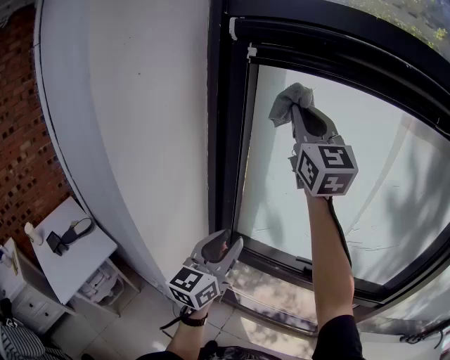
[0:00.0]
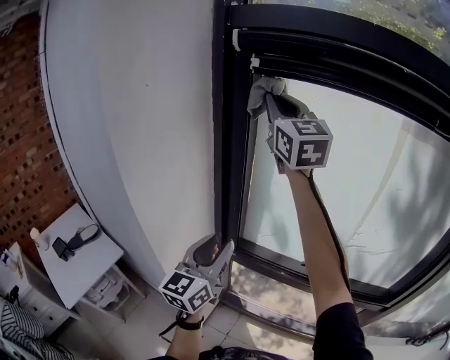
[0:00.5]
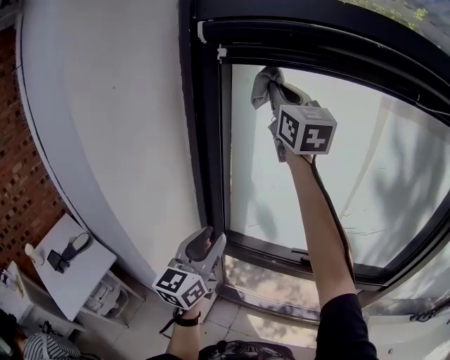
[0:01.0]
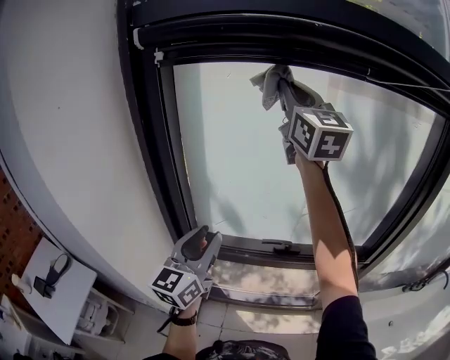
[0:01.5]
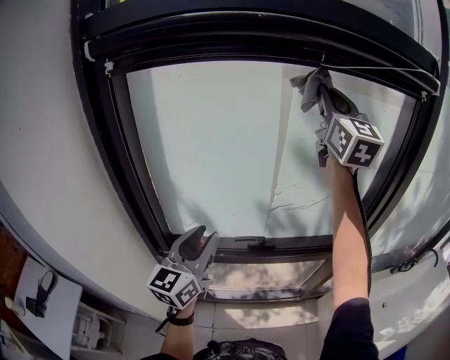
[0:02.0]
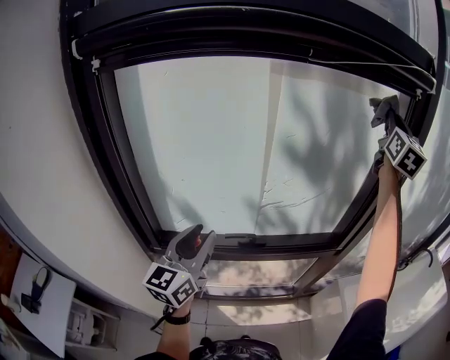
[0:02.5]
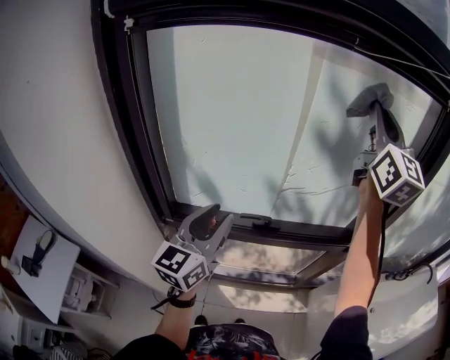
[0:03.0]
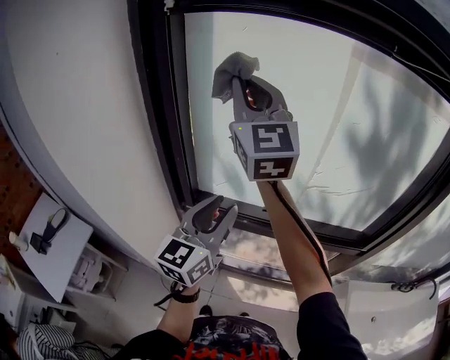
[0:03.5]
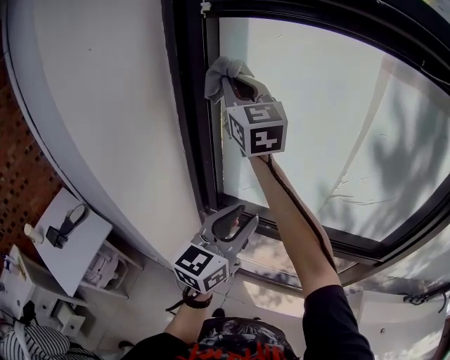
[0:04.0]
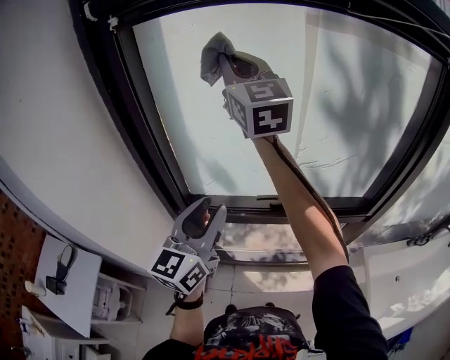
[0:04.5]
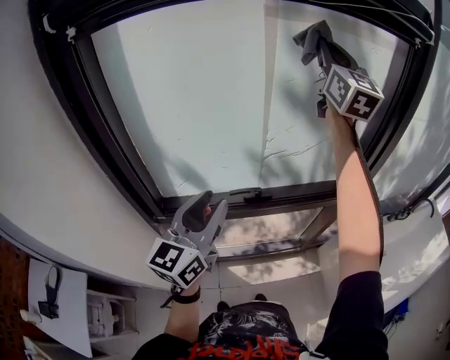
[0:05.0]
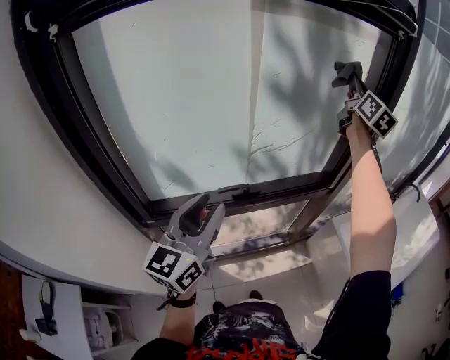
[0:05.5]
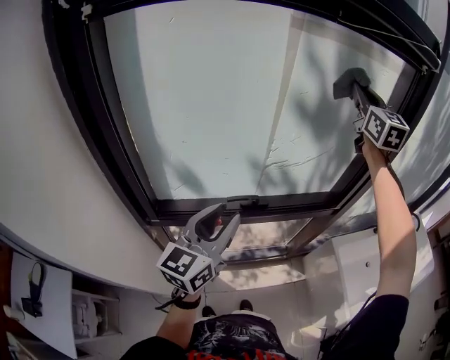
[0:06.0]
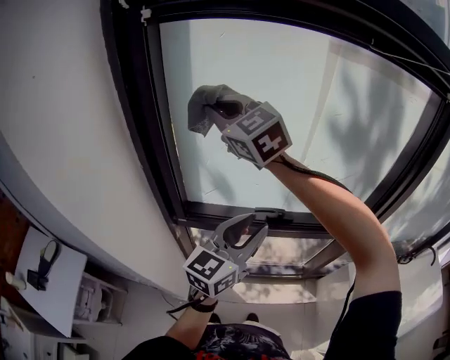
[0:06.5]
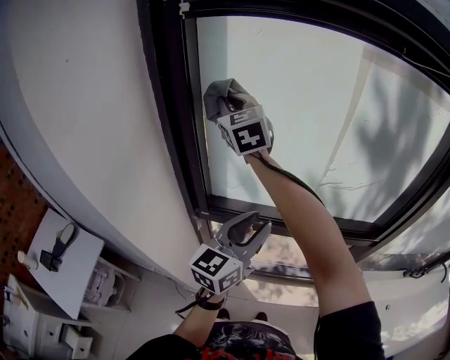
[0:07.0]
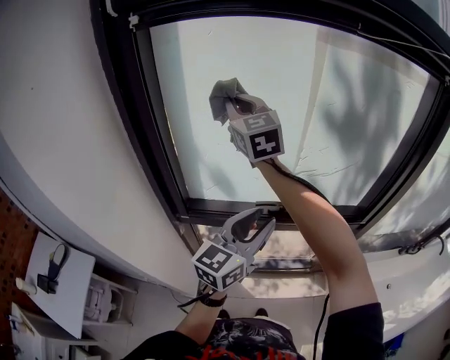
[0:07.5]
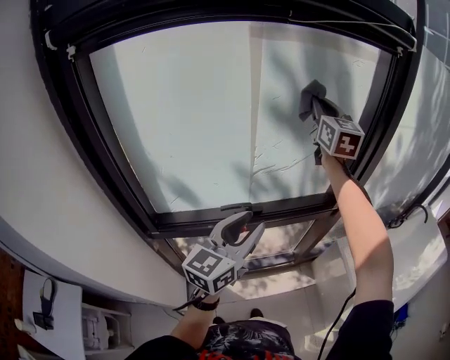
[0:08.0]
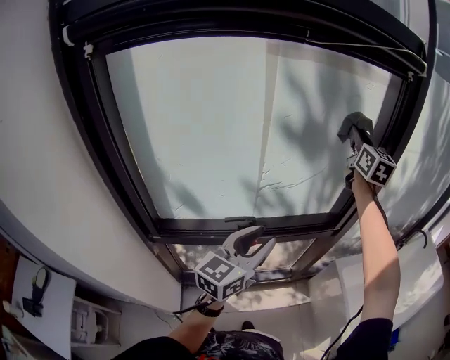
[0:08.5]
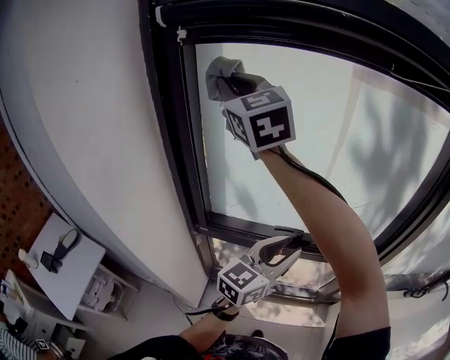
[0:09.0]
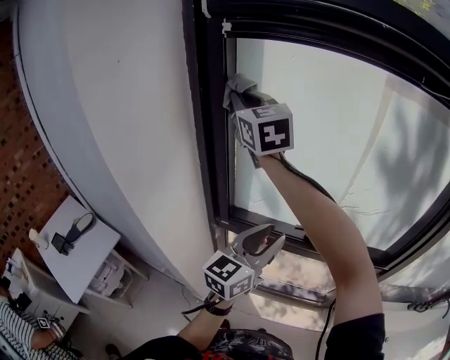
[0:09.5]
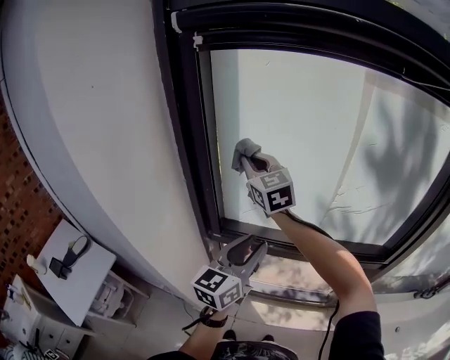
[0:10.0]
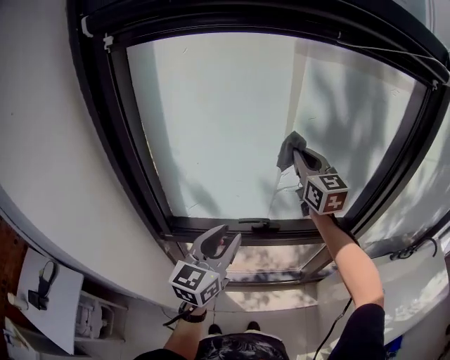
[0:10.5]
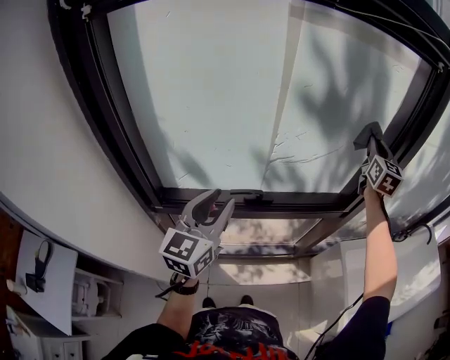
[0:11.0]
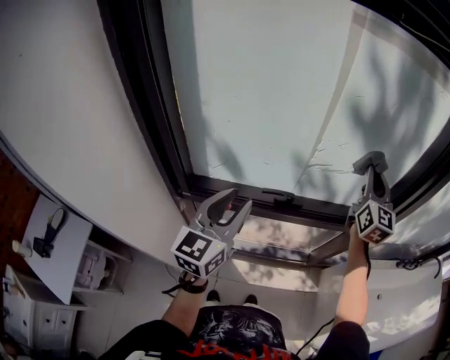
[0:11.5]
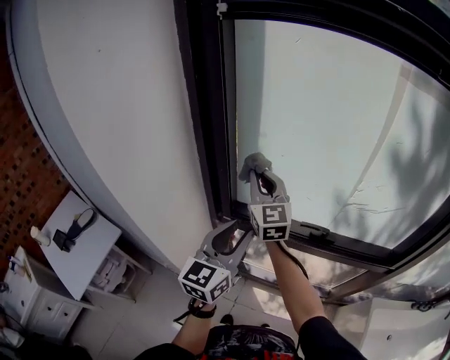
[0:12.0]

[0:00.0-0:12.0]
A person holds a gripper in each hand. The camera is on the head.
0:00.0 to 0:02.0: The right gripper shifts by roughly 35 cm, and changes its angle by roughly 30 degrees, while the left gripper ends up some 15 cm from where it was.
0:02.0 to 0:04.0: The right gripper moves about 40 cm, and rotates some 30 degrees; the left gripper moves some 5 cm.
0:04.0 to 0:06.0: The right gripper goes up and down, some 10 cm each way, reversing 2 times, and rotates about 50 degrees; the left gripper shifts by about 10 cm, and turns by some 20 degrees.
0:06.0 to 0:08.0: The right gripper shifts roughly 5 cm downward, while the left gripper ends up about 10 cm from where it was.
0:08.0 to 0:10.0: The right gripper changes place by about 50 cm, and changes its angle by about 50 degrees; the left gripper changes place by approximately 15 cm, and rotates about 30 degrees.
0:10.0 to 0:12.0: The left gripper moves some 5 cm; the right gripper heads downward, covering some 10 cm.

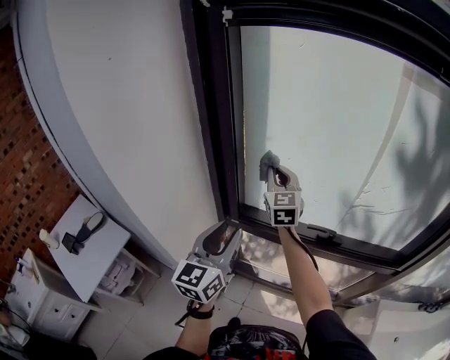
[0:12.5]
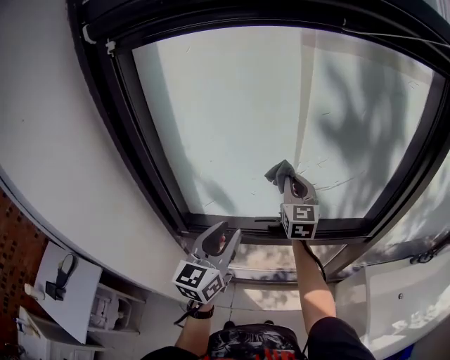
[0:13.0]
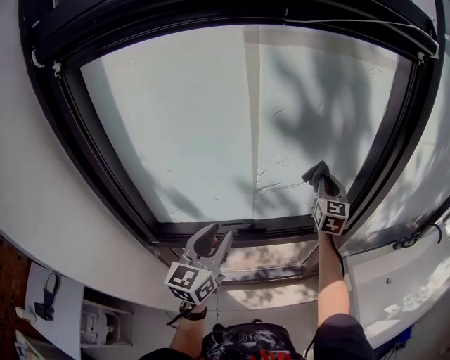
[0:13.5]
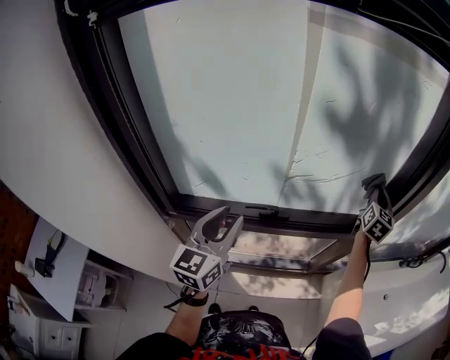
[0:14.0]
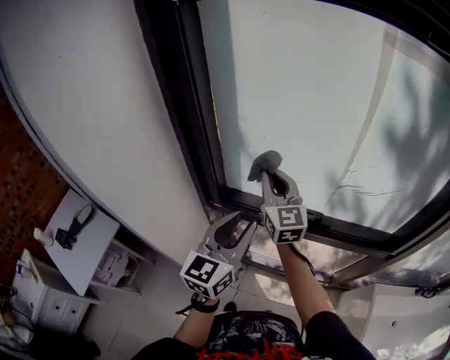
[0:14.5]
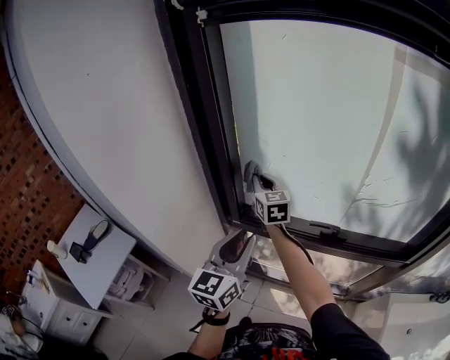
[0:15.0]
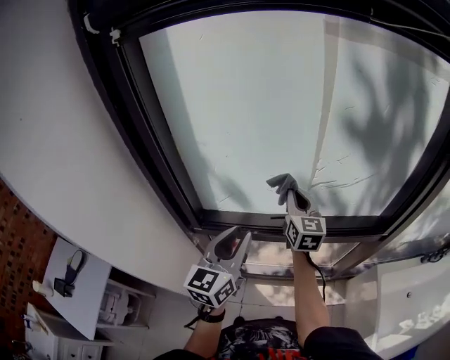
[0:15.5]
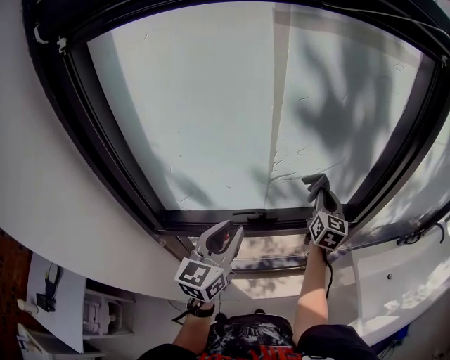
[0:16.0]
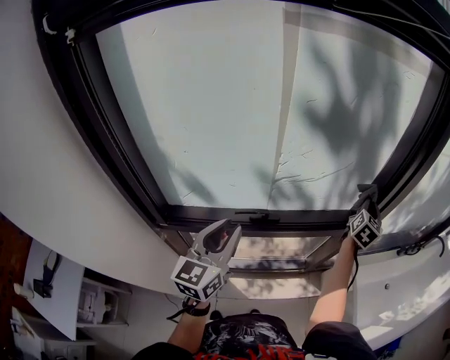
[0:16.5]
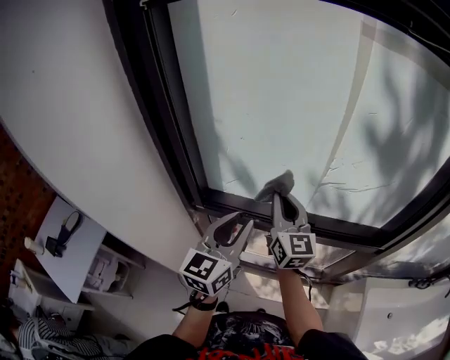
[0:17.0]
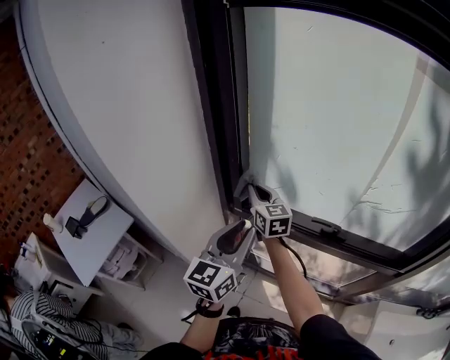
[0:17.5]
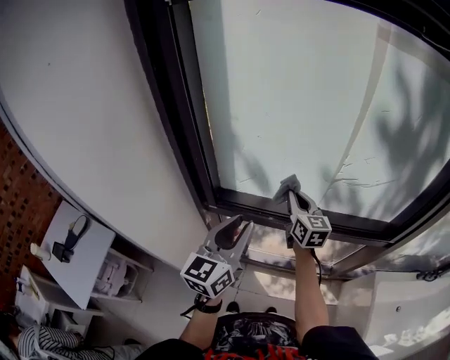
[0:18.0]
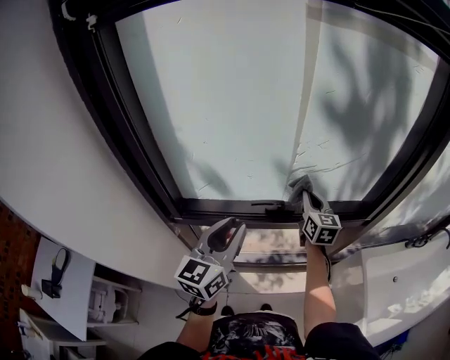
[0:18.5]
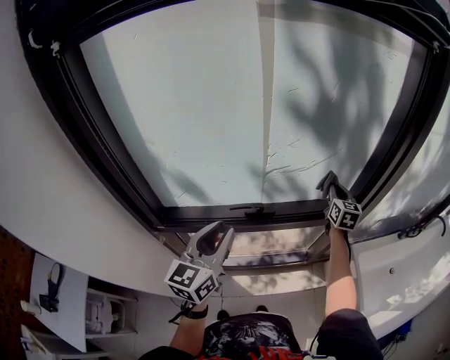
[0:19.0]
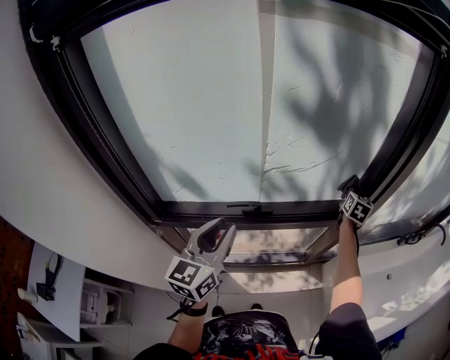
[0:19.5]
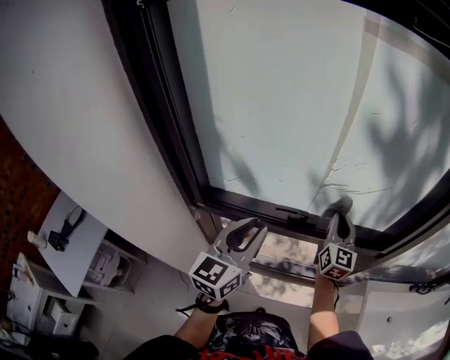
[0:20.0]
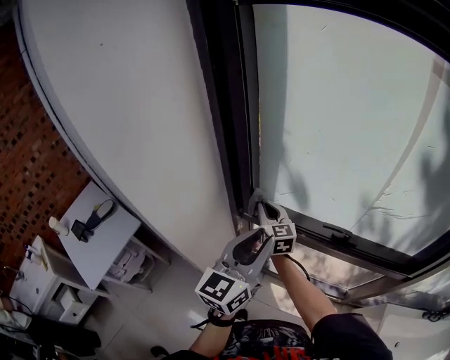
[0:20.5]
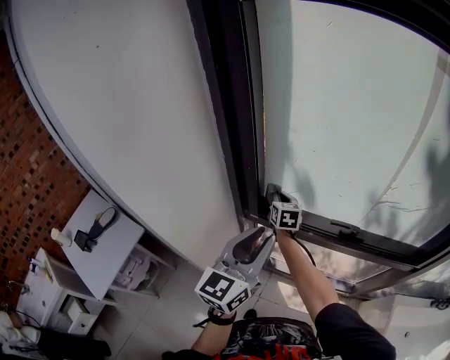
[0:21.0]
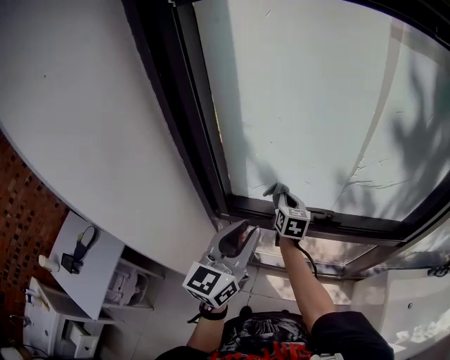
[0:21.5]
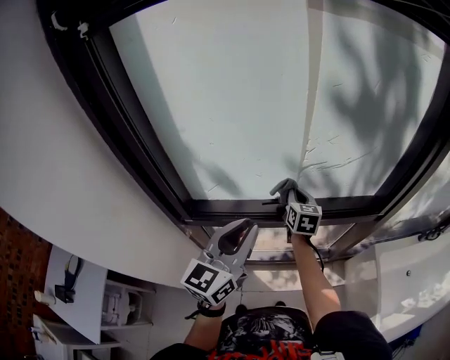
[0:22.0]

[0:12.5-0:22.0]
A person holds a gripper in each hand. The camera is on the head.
0:14.5 to 0:16.5: The left gripper moves about 15 cm. Meanwhile the right gripper shifts by approximately 60 cm, and changes its angle by roughly 70 degrees.
0:16.5 to 0:18.0: The left gripper shifts by some 15 cm; the right gripper changes place by some 50 cm, and changes its angle by roughly 60 degrees.
0:18.0 to 0:20.0: The right gripper rotates some 30 degrees.
0:20.0 to 0:22.0: The right gripper swivels approximately 30 degrees.

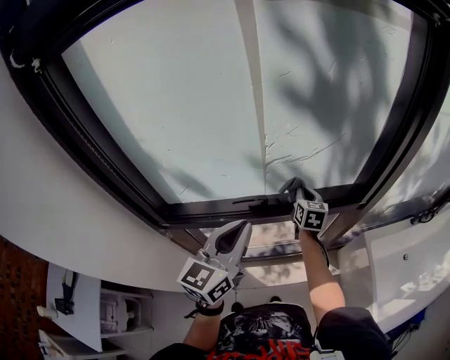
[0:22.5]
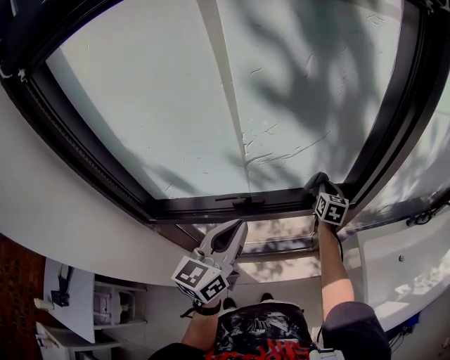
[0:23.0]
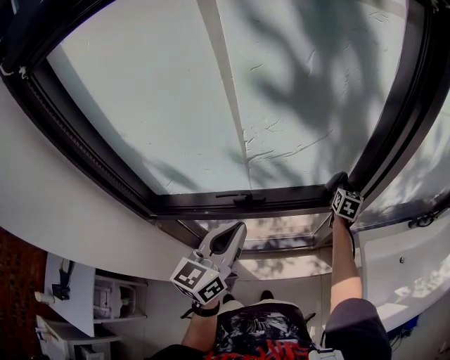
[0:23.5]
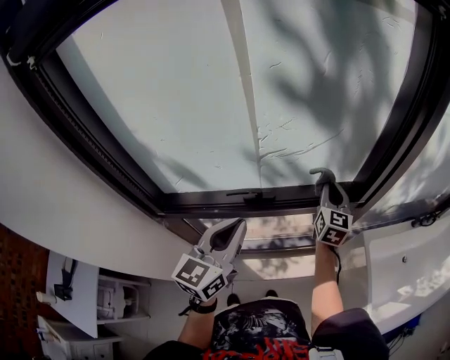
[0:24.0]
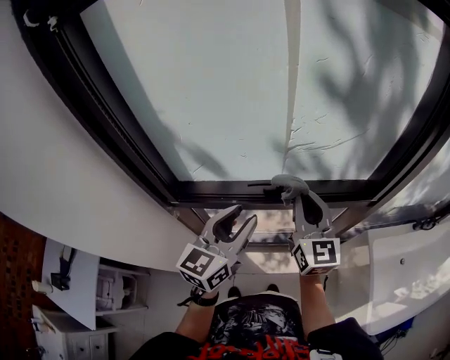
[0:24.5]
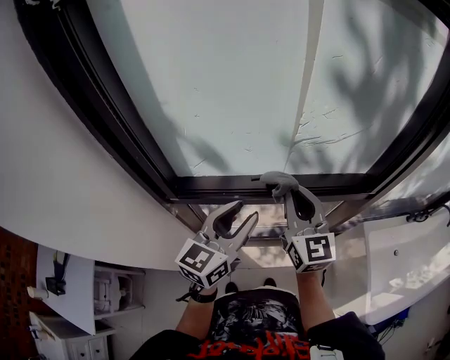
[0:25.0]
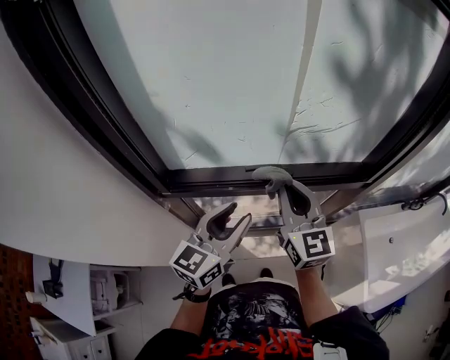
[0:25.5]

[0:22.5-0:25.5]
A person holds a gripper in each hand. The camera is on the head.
0:22.5 to 0:24.0: The right gripper heads to the right and upward, covering about 15 cm.
0:24.0 to 0:25.5: The right gripper moves to the left and backward, roughly 30 cm, and swivels some 30 degrees. The left gripper goes about 10 cm to the left, and opens.

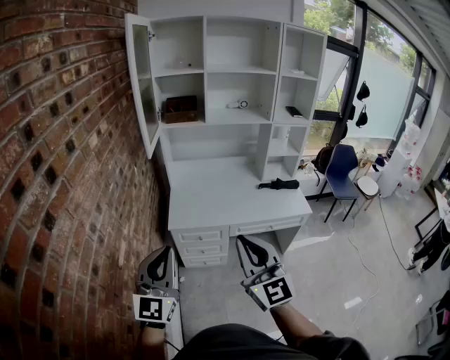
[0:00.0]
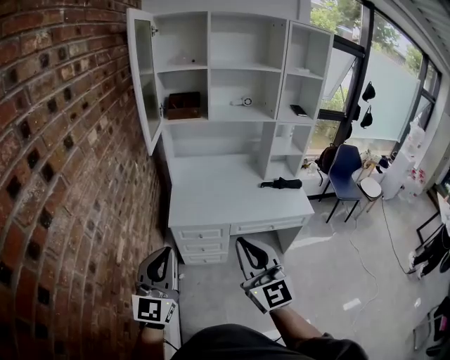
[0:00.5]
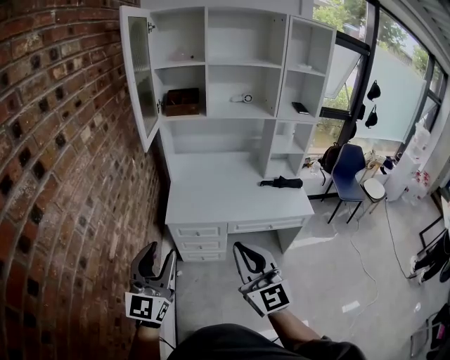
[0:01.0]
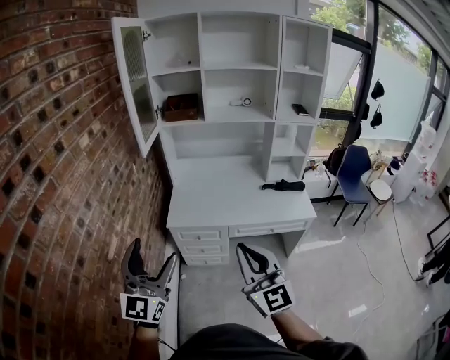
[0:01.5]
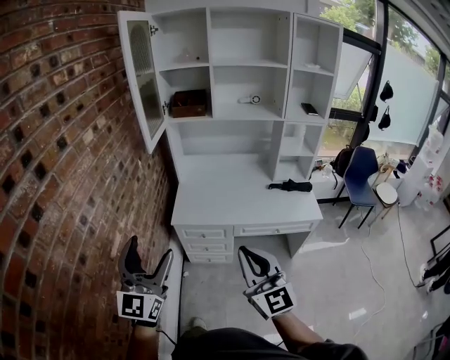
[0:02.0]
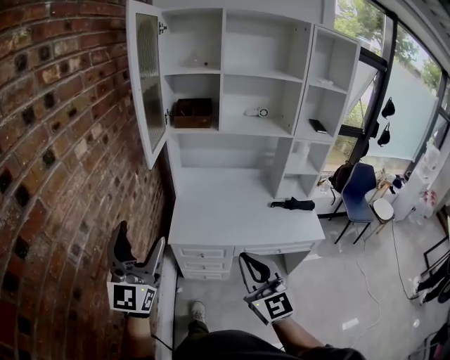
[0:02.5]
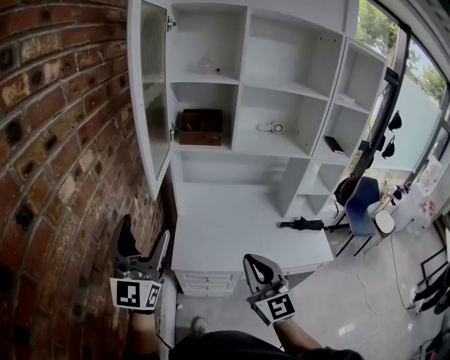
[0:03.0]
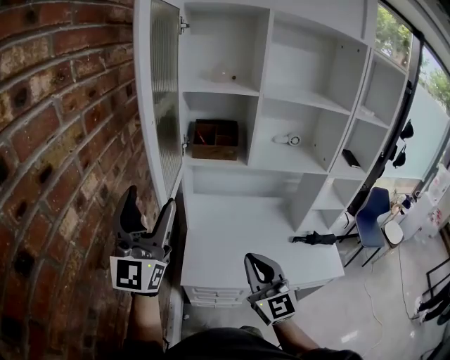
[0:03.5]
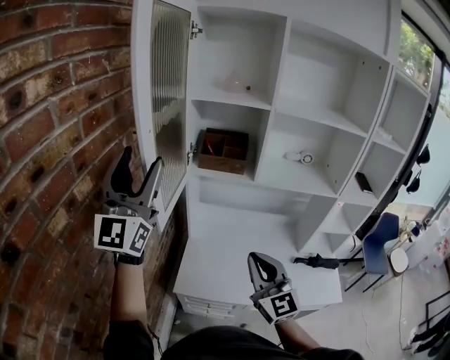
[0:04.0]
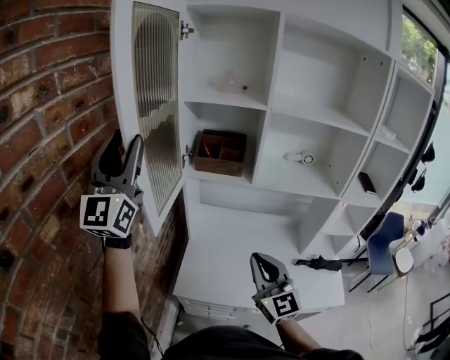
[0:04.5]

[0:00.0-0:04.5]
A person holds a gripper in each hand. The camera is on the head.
0:00.0 to 0:02.0: The right gripper goes about 5 cm to the right. Meanwhile the left gripper opens.
0:02.0 to 0:04.5: The two grippers travel together, forward, approximately 50 cm. The left gripper moves upward, approximately 25 cm, rotates some 20 degrees, and closes up.
